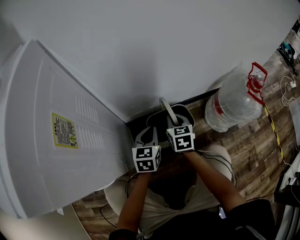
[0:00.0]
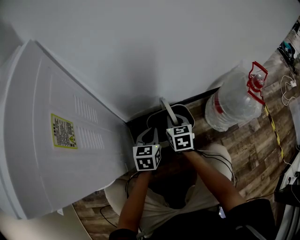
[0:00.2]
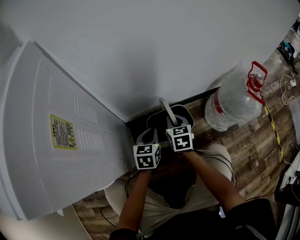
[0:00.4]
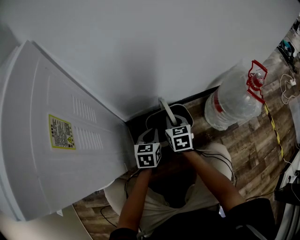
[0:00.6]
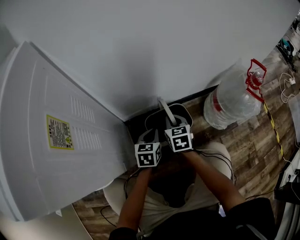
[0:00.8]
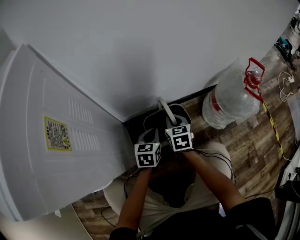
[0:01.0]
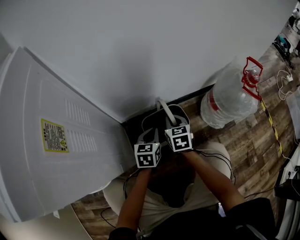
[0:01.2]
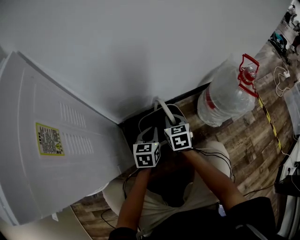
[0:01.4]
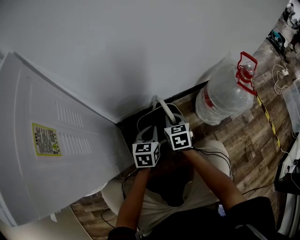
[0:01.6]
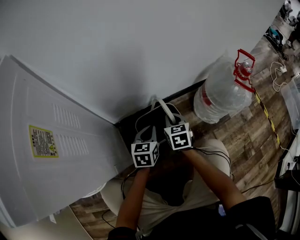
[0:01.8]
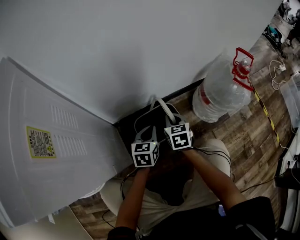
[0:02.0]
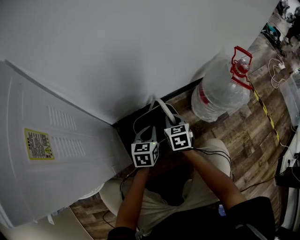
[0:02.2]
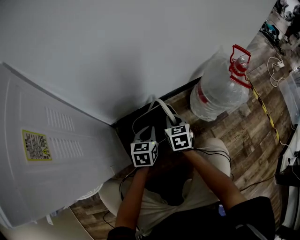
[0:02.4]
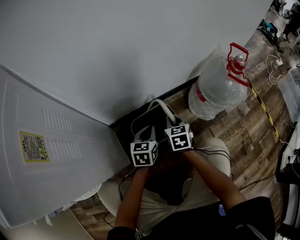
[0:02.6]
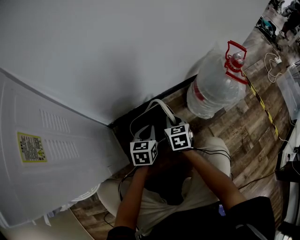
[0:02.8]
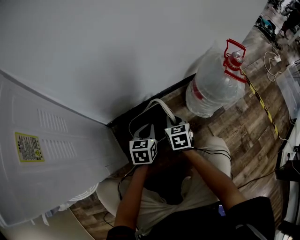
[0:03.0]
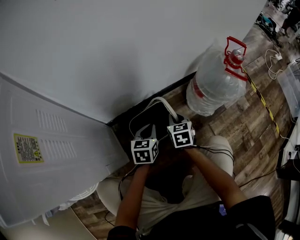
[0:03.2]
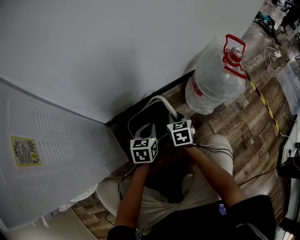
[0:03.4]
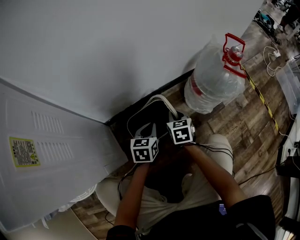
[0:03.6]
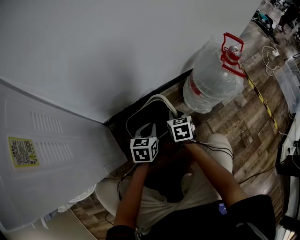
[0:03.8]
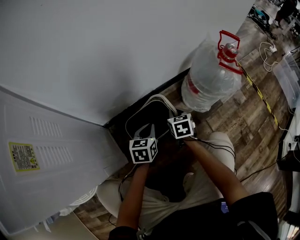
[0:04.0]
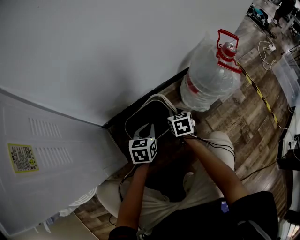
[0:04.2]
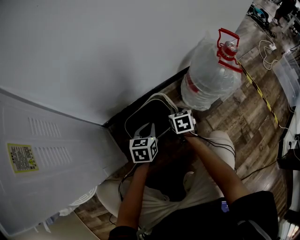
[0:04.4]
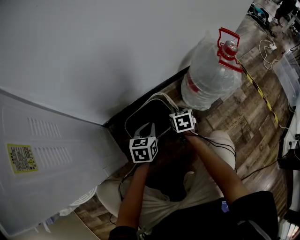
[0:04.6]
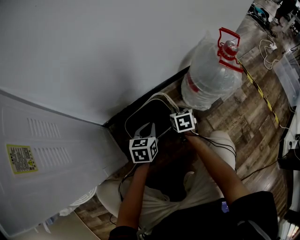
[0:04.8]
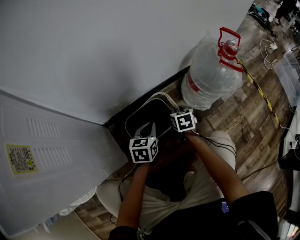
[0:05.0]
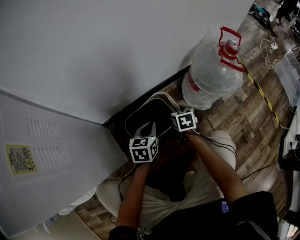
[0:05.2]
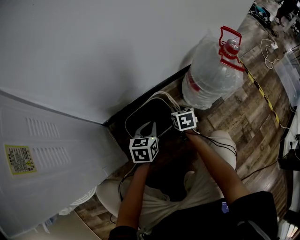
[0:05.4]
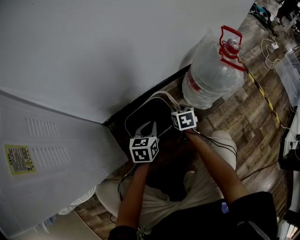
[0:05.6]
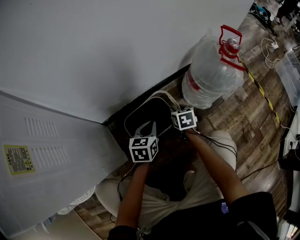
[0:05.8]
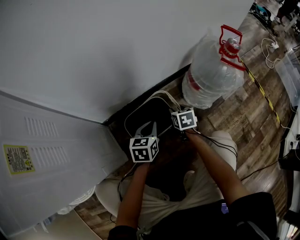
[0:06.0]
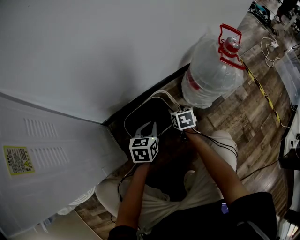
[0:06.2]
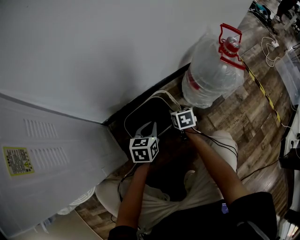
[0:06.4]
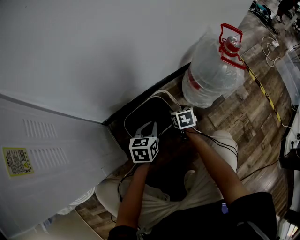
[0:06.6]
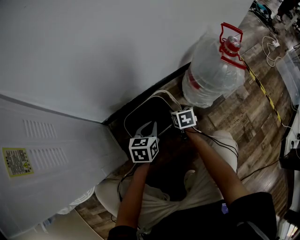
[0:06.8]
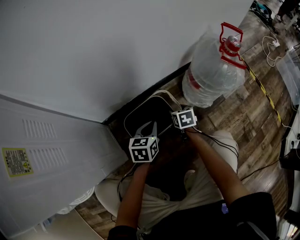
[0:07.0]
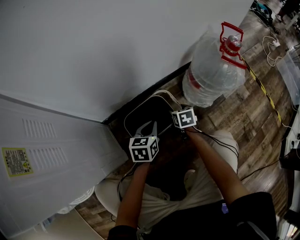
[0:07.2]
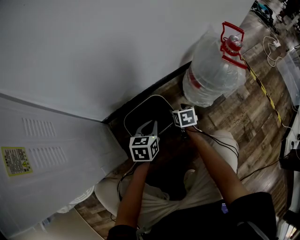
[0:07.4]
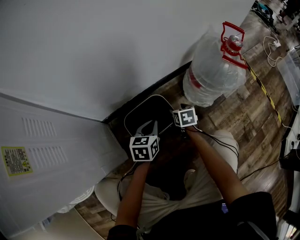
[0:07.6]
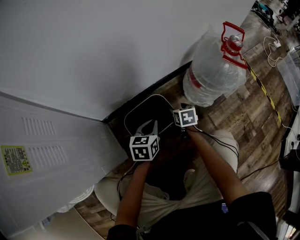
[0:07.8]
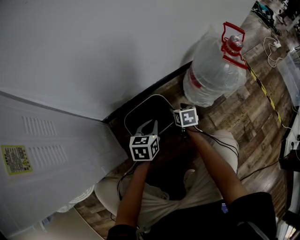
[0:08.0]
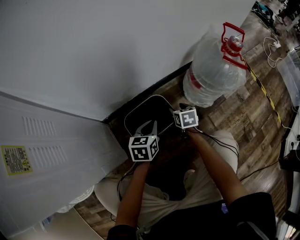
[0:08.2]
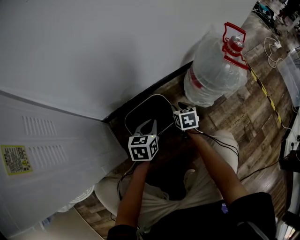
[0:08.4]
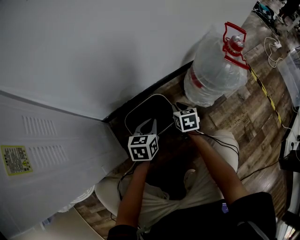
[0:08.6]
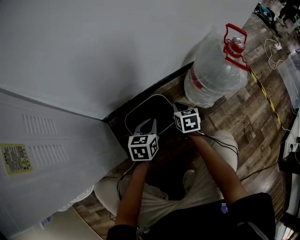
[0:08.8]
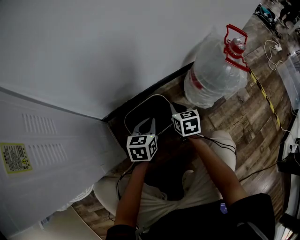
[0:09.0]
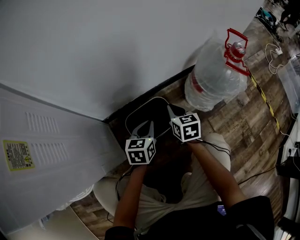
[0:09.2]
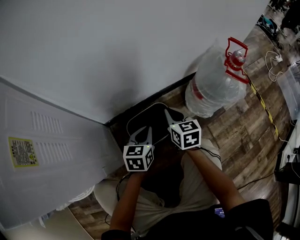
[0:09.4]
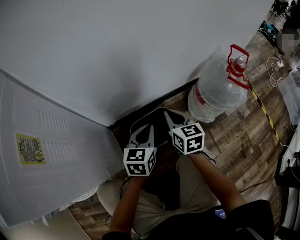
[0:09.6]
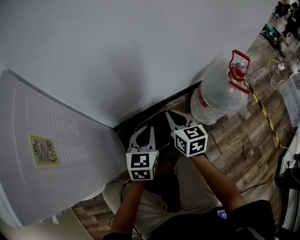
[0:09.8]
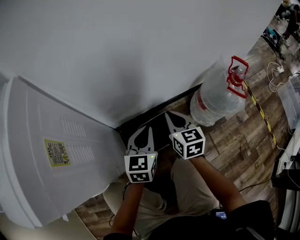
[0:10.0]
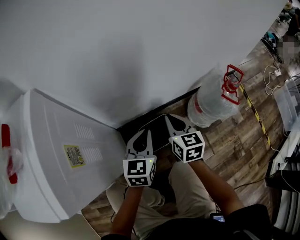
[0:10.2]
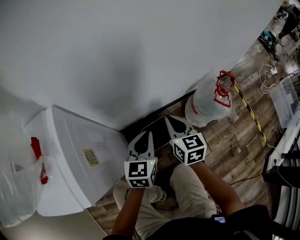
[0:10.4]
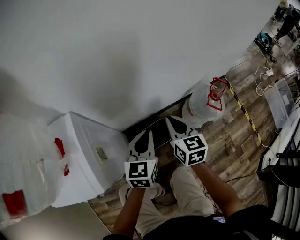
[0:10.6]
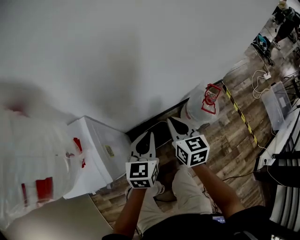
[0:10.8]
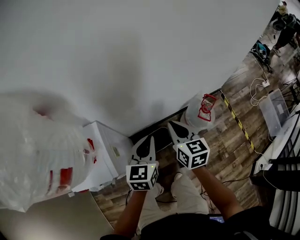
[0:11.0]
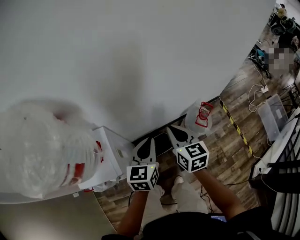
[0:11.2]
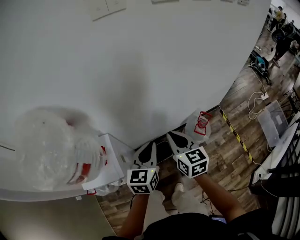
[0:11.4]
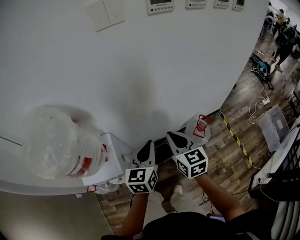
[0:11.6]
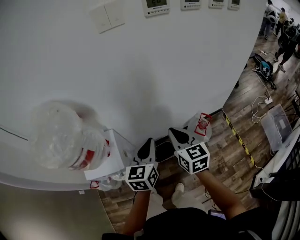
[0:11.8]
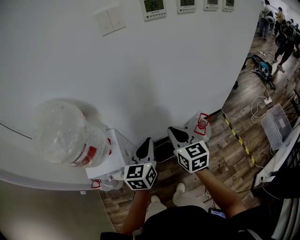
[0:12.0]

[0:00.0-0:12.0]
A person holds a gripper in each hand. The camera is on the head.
0:00.0 to 0:01.6: The right gripper shifts by about 5 cm; the left gripper heads to the right, covering roughly 5 cm.
0:01.6 to 0:03.0: The right gripper goes some 5 cm to the right.
0:03.0 to 0:04.4: The right gripper changes place by roughly 5 cm.
0:04.4 to 0:06.0: The right gripper opens up.
0:06.0 to 0:07.6: The right gripper opens.
0:07.6 to 0:09.0: The right gripper travels upward by approximately 10 cm, and closes.
0:09.0 to 0:10.4: Both grippers travel together upward, about 35 cm.
0:10.4 to 0:12.0: Both grippers move upward, about 50 cm.

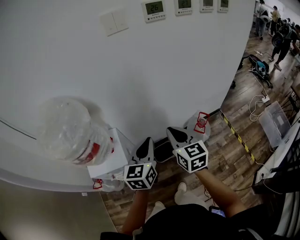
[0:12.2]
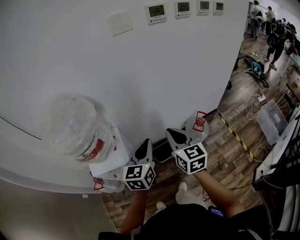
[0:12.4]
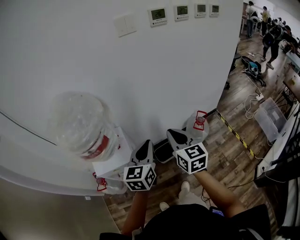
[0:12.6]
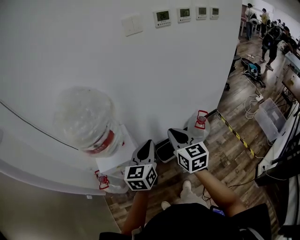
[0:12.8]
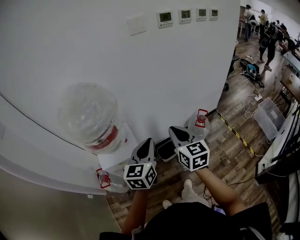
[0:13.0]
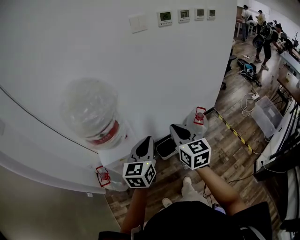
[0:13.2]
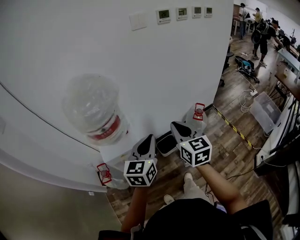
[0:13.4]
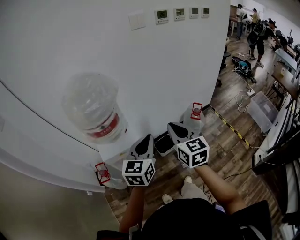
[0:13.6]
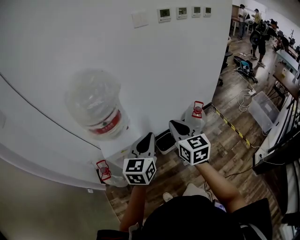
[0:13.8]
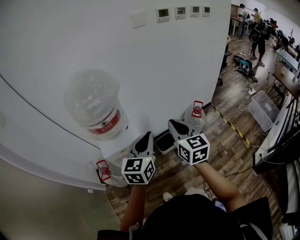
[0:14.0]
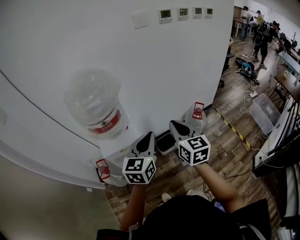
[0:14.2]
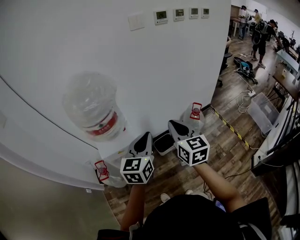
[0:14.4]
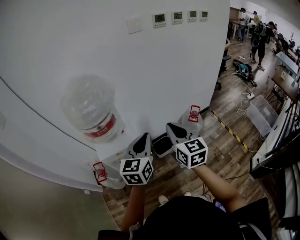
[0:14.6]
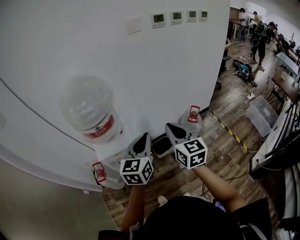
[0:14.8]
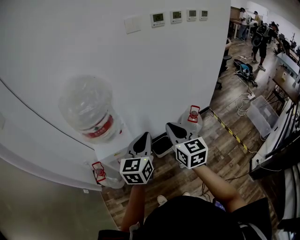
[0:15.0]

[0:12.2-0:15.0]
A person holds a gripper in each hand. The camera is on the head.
0:12.2 to 0:13.6: The grippers both shift backward and to the left by roughly 20 cm.
0:13.6 to 0:15.0: The grippers move only a little.

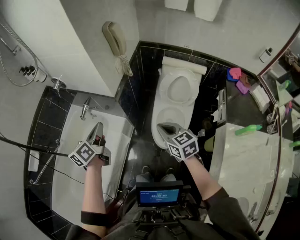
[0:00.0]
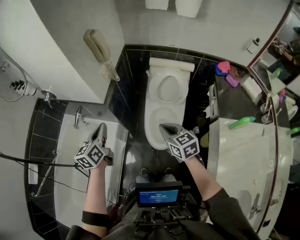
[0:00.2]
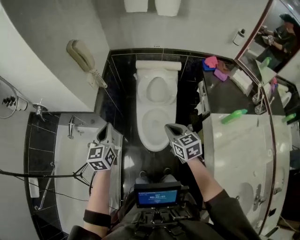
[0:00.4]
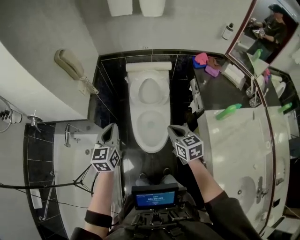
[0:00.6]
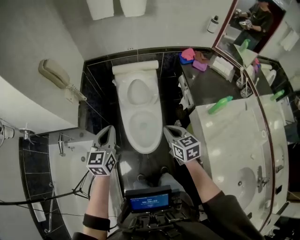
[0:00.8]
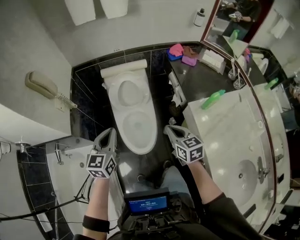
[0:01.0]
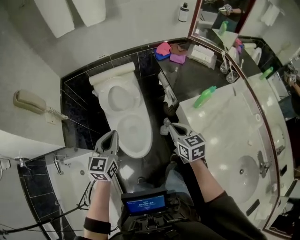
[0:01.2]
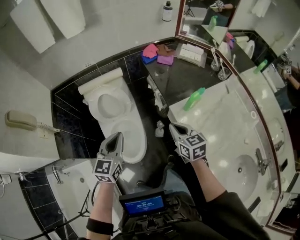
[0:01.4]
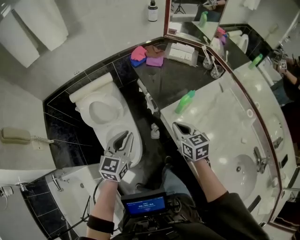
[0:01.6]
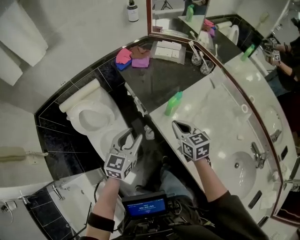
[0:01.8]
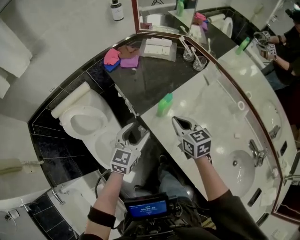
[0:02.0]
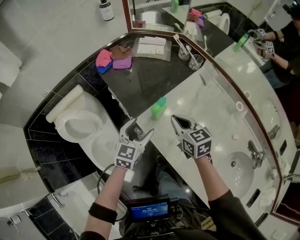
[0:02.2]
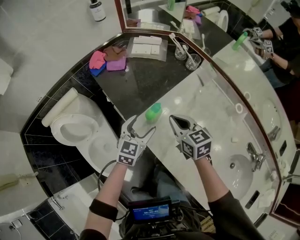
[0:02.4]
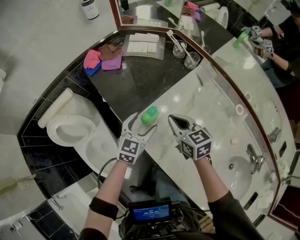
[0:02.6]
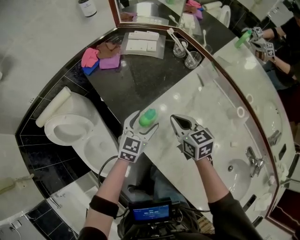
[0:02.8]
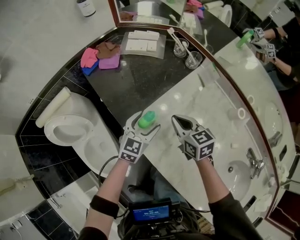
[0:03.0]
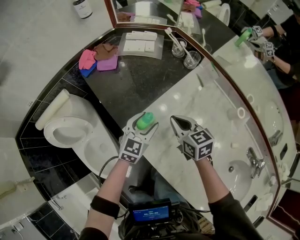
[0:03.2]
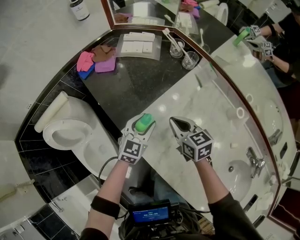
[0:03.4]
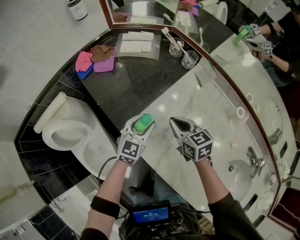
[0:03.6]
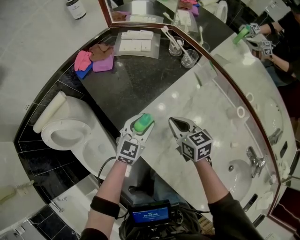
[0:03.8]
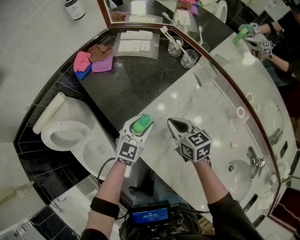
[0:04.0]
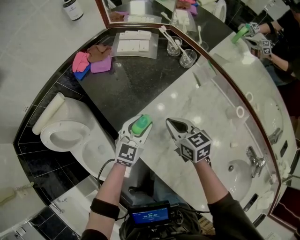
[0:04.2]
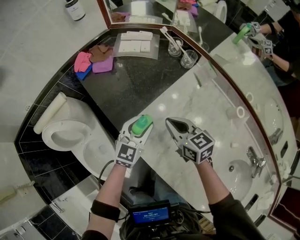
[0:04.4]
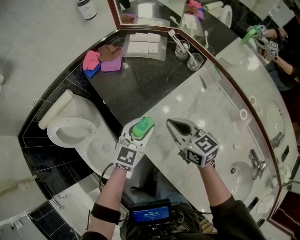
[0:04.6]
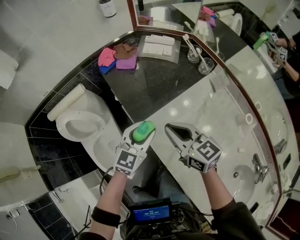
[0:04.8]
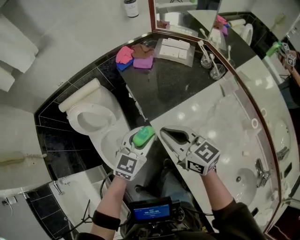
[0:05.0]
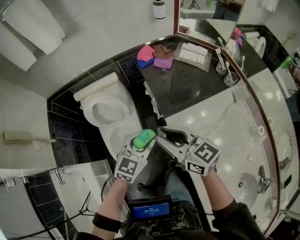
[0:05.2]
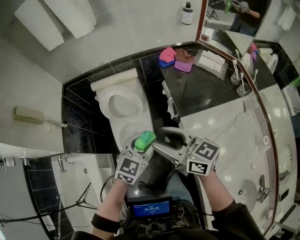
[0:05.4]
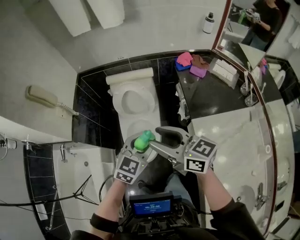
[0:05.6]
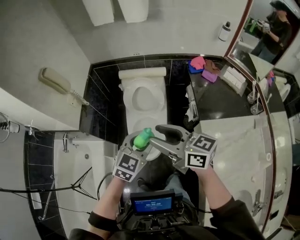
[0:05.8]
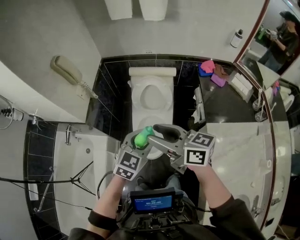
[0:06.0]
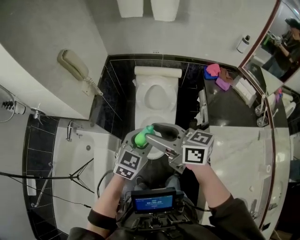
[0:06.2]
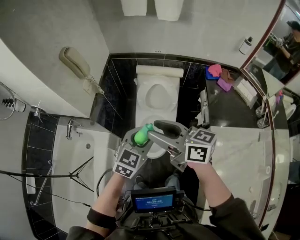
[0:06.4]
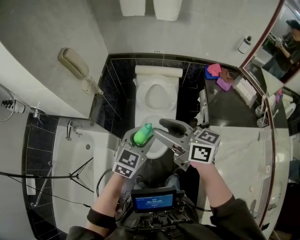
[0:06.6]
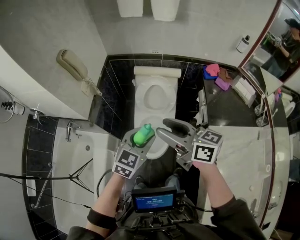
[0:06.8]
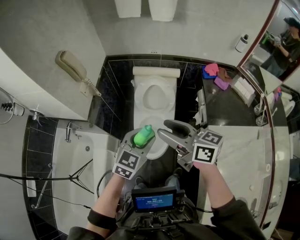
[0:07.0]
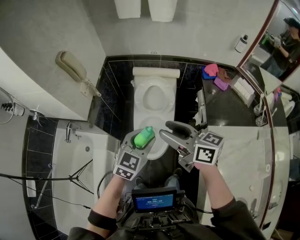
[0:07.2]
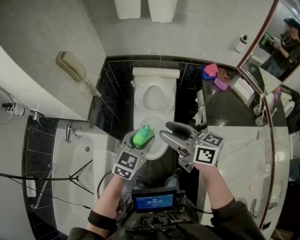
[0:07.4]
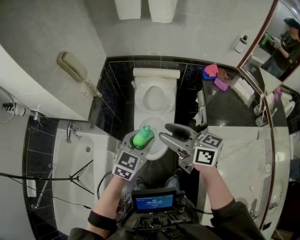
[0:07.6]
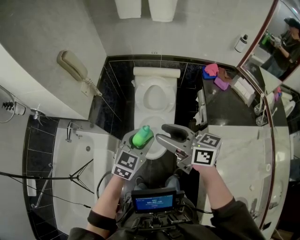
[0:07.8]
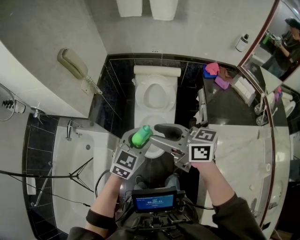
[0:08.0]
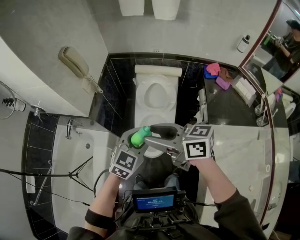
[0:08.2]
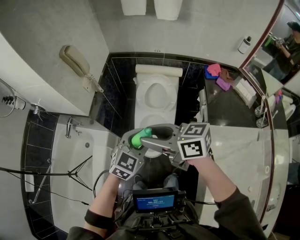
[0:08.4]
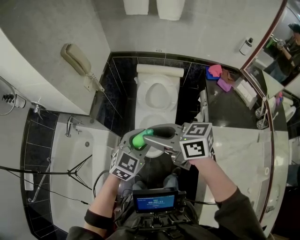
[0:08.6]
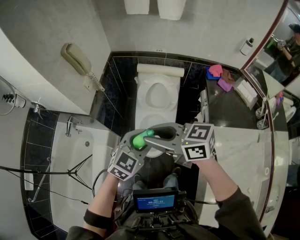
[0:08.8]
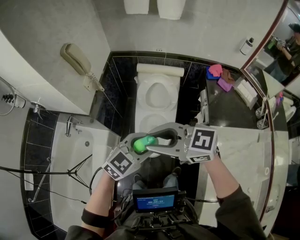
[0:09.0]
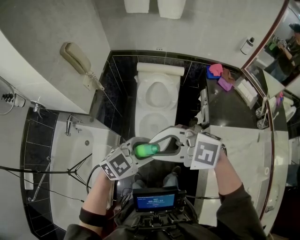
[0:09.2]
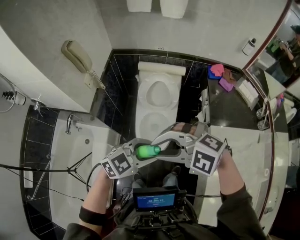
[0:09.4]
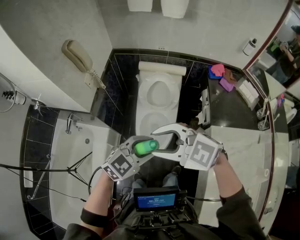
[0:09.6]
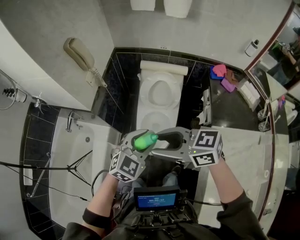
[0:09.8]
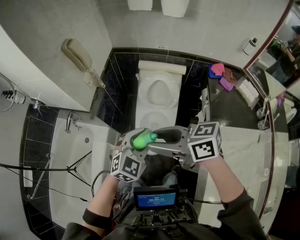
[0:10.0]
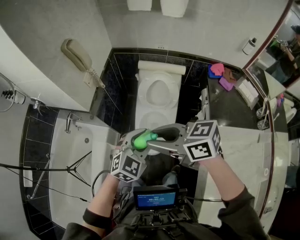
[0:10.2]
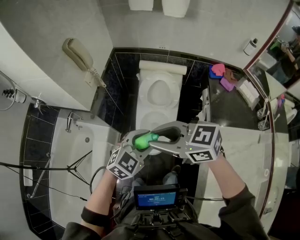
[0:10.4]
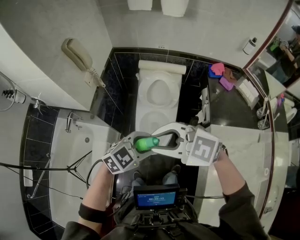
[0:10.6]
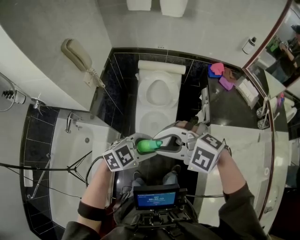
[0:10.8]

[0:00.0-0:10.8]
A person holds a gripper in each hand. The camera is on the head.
0:00.0 to 0:01.6: The pair of grippers is taken some 50 cm. The right gripper swivels approximately 50 degrees. The left gripper changes its angle by some 70 degrees.
0:01.6 to 0:03.0: The right gripper travels to the right and forward by about 25 cm; the left gripper goes roughly 40 cm to the right, forward and downward, rotates about 30 degrees, and opens up.
0:03.0 to 0:04.6: The grippers both shift upward by about 5 cm. The left gripper closes.
0:04.6 to 0:06.2: Both grippers are carried about 60 cm. The right gripper rotates about 60 degrees, and opens. The left gripper changes its angle by roughly 40 degrees.
0:06.2 to 0:07.8: There are only small adjustments of the grippers.
0:07.8 to 0:09.2: The right gripper ends up about 10 cm from where it was, turns by approximately 70 degrees, and closes. The left gripper changes place by some 10 cm, and changes its angle by some 30 degrees.
0:09.2 to 0:10.8: The right gripper opens, then closes once more.
